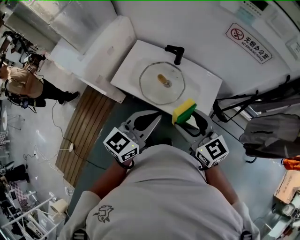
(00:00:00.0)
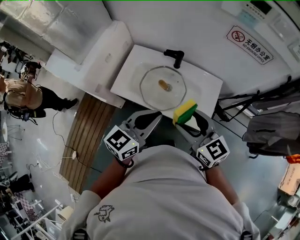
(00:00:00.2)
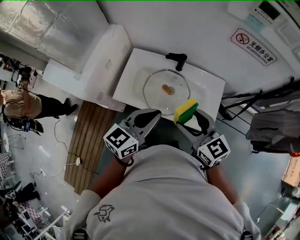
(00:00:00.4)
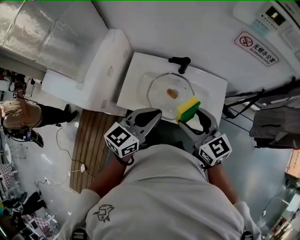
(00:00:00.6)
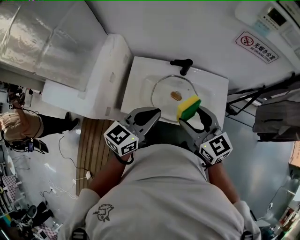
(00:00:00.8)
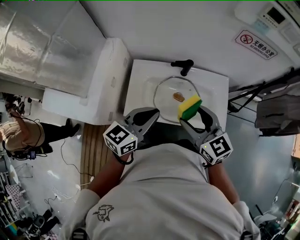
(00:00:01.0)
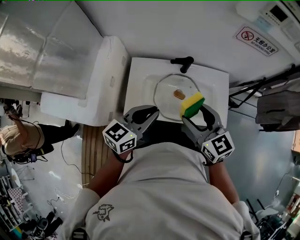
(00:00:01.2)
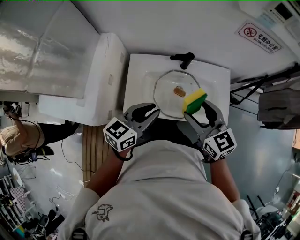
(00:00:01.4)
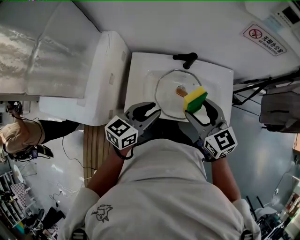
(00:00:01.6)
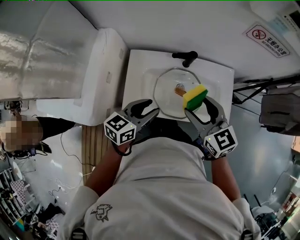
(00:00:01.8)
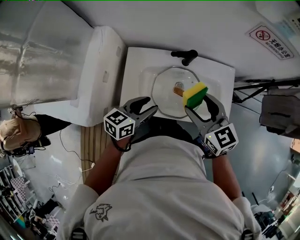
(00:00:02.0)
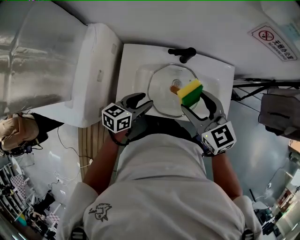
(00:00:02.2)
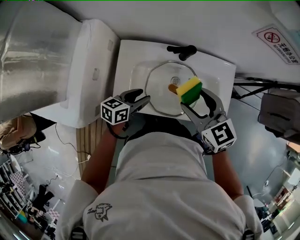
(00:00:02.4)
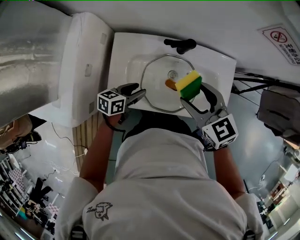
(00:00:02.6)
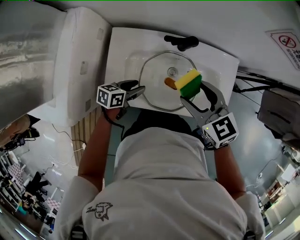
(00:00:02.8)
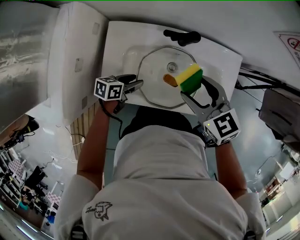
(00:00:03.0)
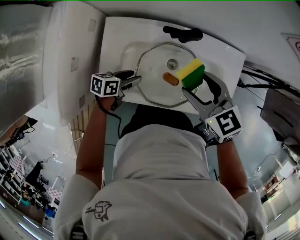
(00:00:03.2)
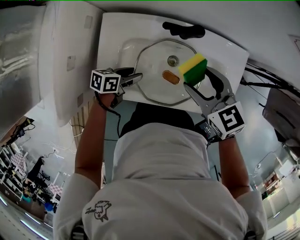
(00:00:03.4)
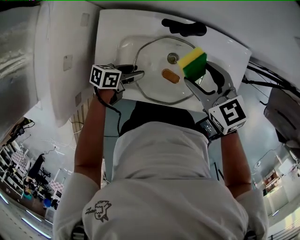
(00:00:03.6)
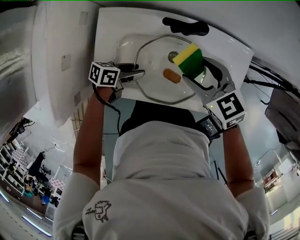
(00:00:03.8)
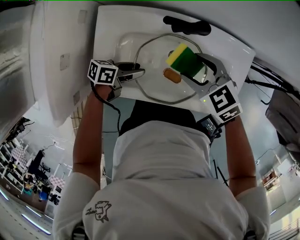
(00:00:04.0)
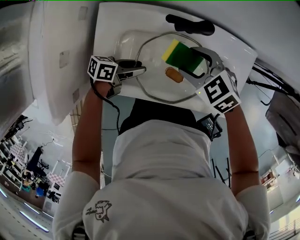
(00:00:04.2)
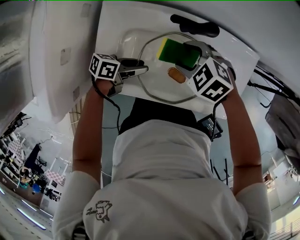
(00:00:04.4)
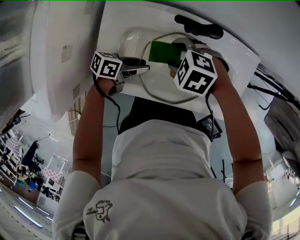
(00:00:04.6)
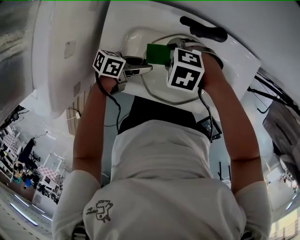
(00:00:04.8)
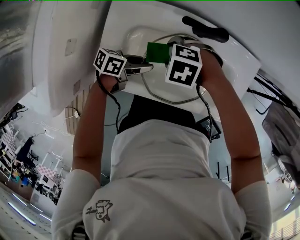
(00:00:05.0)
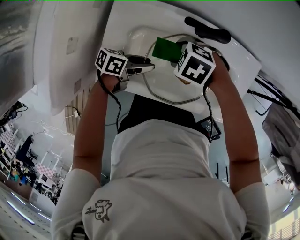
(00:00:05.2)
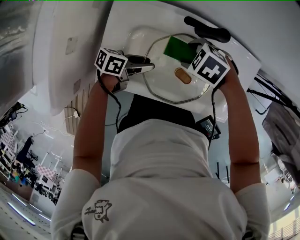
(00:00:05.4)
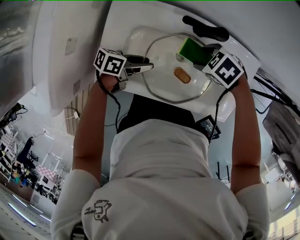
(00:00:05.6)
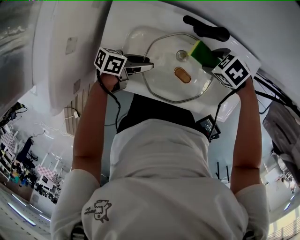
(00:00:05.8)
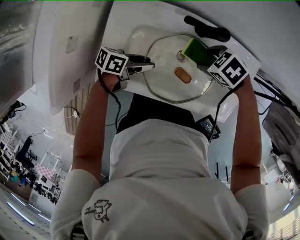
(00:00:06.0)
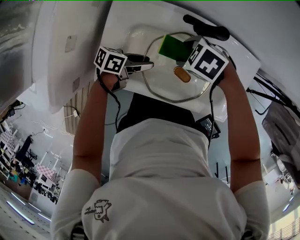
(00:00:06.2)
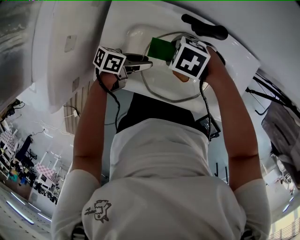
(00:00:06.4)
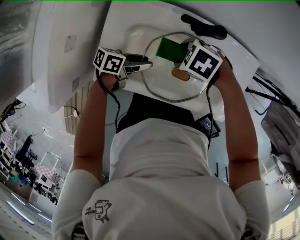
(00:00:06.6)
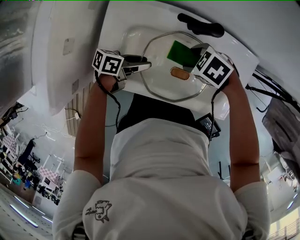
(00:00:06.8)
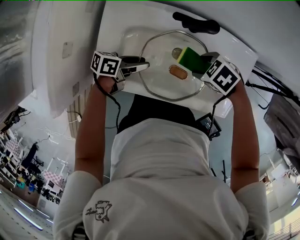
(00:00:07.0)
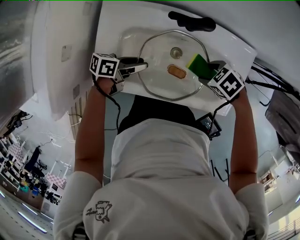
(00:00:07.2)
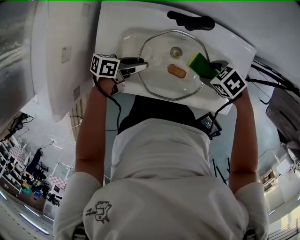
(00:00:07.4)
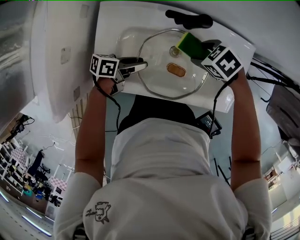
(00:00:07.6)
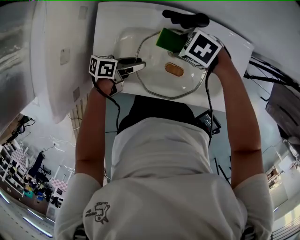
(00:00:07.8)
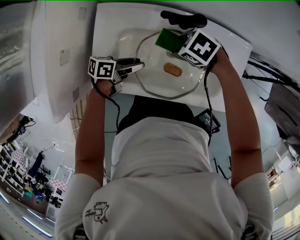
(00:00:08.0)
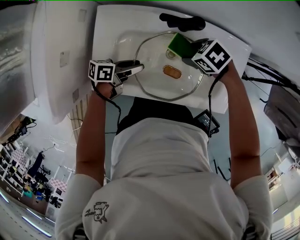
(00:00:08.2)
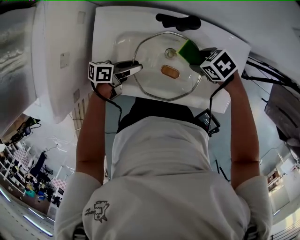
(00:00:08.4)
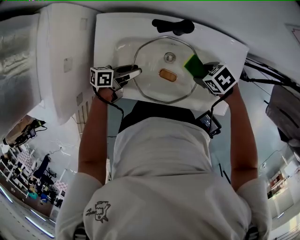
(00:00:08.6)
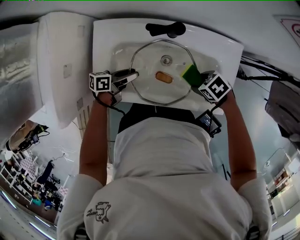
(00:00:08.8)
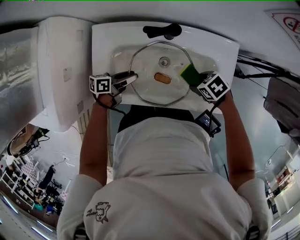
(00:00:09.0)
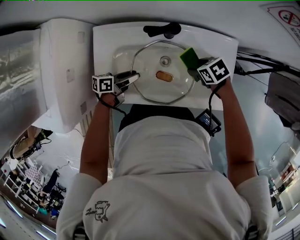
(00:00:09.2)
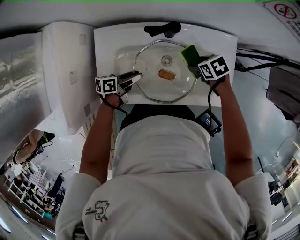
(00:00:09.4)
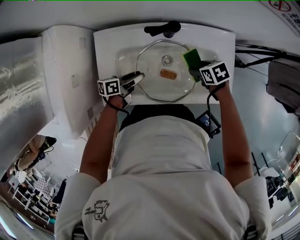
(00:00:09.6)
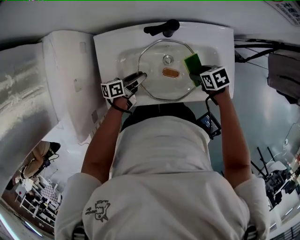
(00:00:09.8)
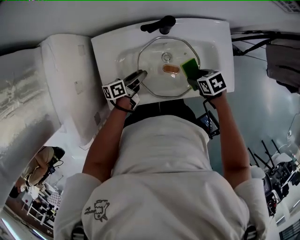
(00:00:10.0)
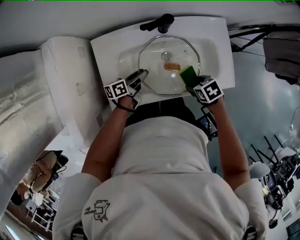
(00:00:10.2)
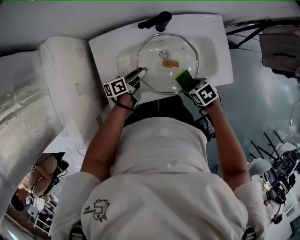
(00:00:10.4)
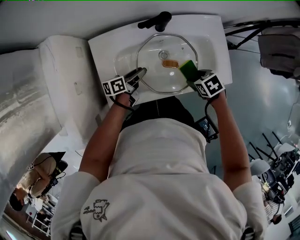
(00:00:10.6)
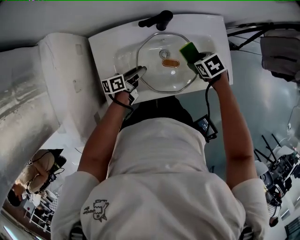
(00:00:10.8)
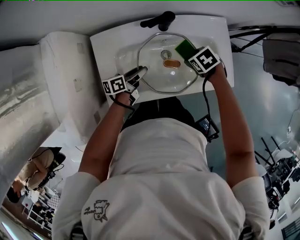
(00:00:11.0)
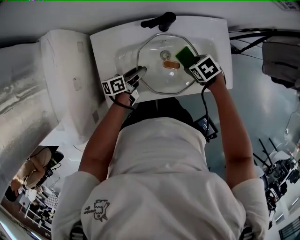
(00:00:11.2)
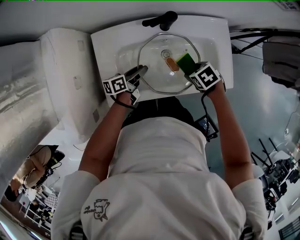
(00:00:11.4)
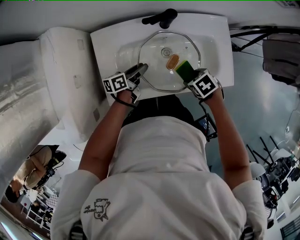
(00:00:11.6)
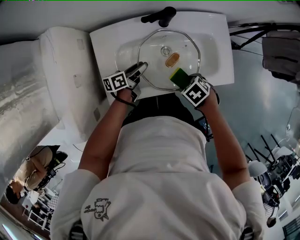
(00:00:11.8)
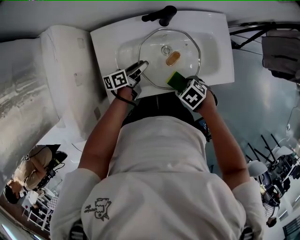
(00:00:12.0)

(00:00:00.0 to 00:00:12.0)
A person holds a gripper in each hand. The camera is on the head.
00:00:00.0 - 00:00:01.6: The right gripper heads to the left and forward, covering about 20 cm, and turns by about 20 degrees; the left gripper travels to the left, forward and downward by roughly 30 cm, turns by roughly 30 degrees, and opens up.
00:00:01.6 - 00:00:03.0: The right gripper moves downward and forward, about 15 cm. Meanwhile the left gripper goes roughly 30 cm downward, and rotates roughly 40 degrees.
00:00:03.0 - 00:00:04.4: The right gripper travels downward by approximately 15 cm, and rotates approximately 40 degrees.
00:00:04.4 - 00:00:06.0: The right gripper changes place by approximately 5 cm, and swivels roughly 20 degrees.
00:00:07.6 - 00:00:09.0: The right gripper shifts by about 15 cm.
00:00:09.0 - 00:00:10.4: The right gripper changes place by approximately 15 cm, and rotates roughly 30 degrees.

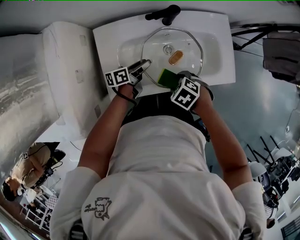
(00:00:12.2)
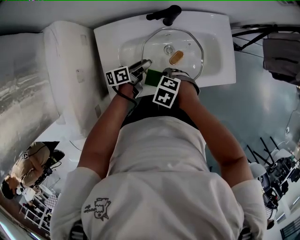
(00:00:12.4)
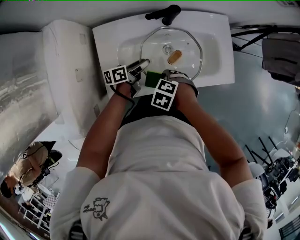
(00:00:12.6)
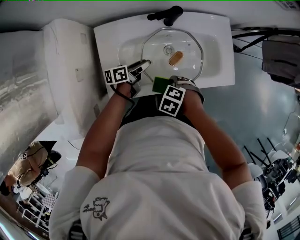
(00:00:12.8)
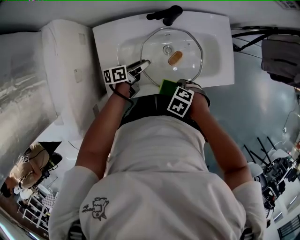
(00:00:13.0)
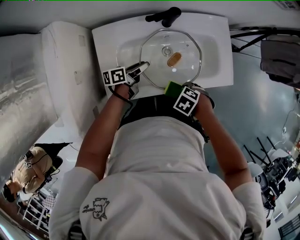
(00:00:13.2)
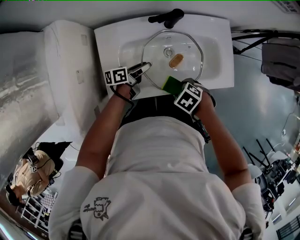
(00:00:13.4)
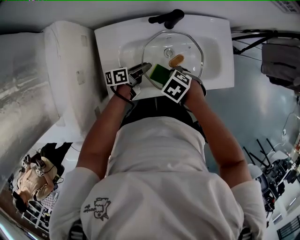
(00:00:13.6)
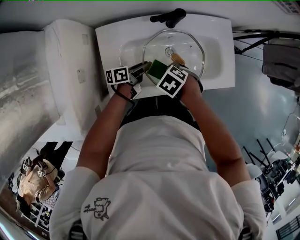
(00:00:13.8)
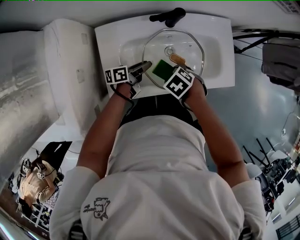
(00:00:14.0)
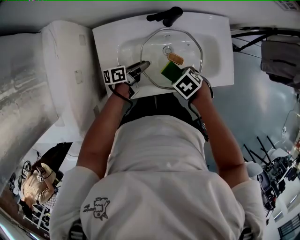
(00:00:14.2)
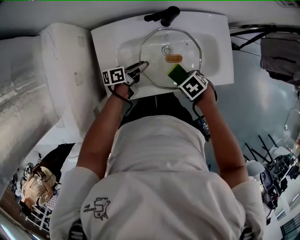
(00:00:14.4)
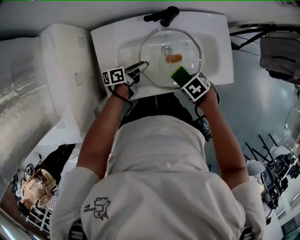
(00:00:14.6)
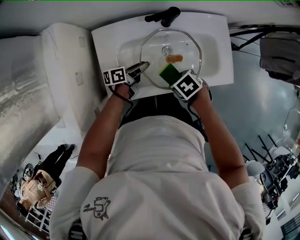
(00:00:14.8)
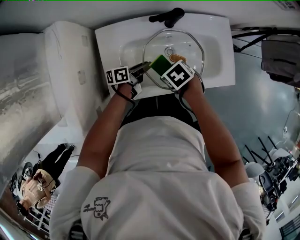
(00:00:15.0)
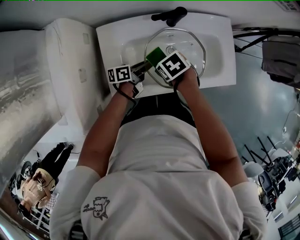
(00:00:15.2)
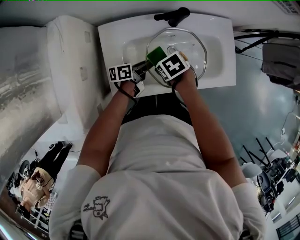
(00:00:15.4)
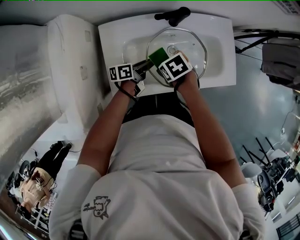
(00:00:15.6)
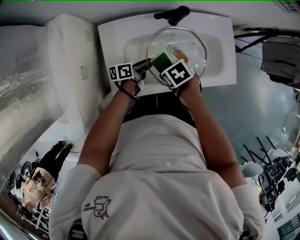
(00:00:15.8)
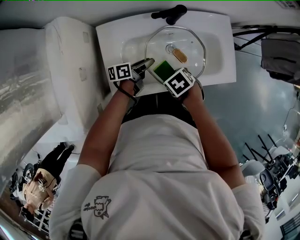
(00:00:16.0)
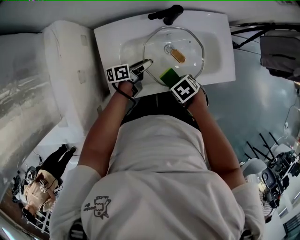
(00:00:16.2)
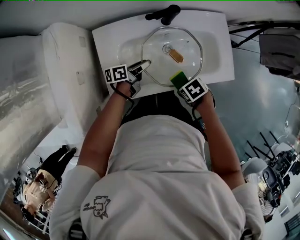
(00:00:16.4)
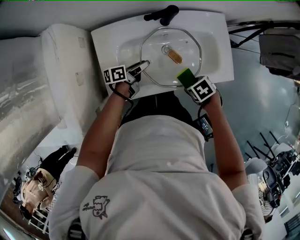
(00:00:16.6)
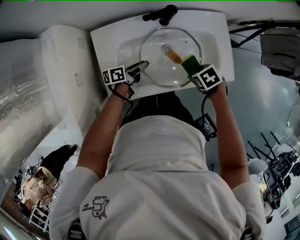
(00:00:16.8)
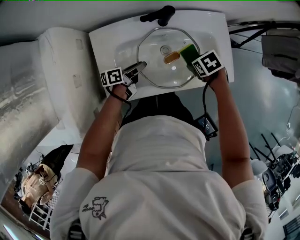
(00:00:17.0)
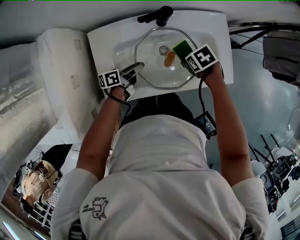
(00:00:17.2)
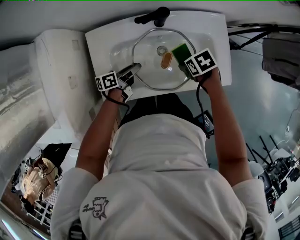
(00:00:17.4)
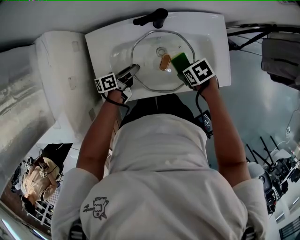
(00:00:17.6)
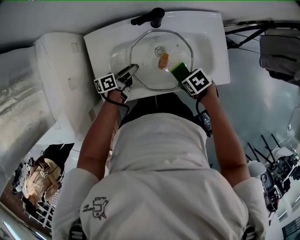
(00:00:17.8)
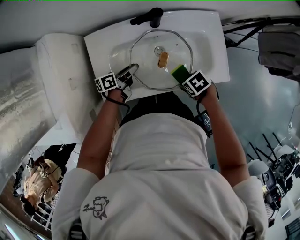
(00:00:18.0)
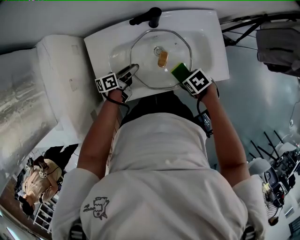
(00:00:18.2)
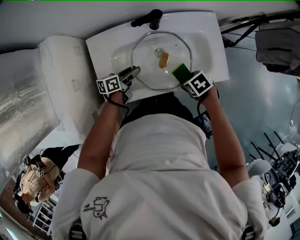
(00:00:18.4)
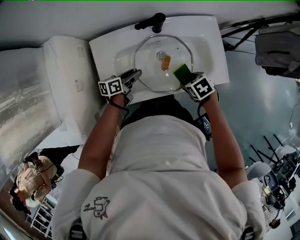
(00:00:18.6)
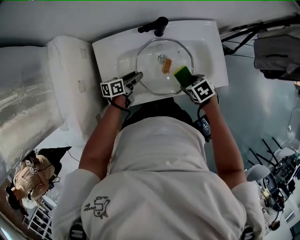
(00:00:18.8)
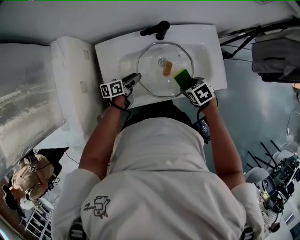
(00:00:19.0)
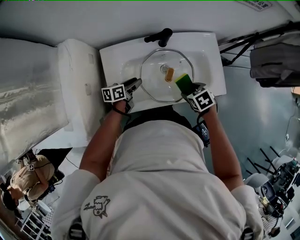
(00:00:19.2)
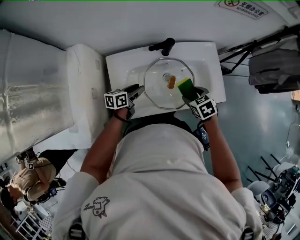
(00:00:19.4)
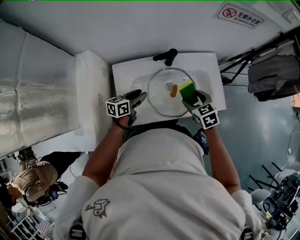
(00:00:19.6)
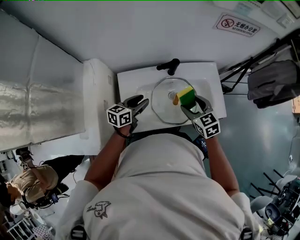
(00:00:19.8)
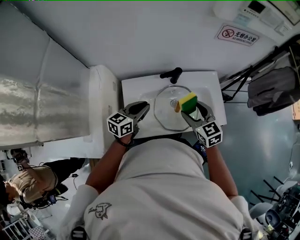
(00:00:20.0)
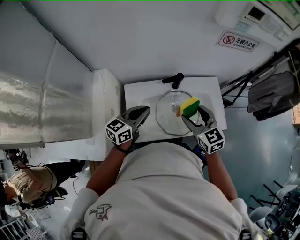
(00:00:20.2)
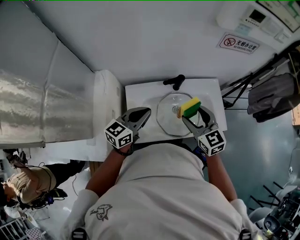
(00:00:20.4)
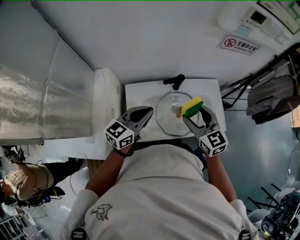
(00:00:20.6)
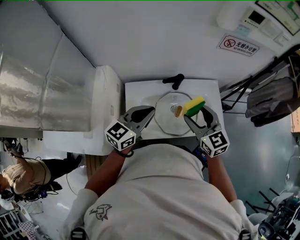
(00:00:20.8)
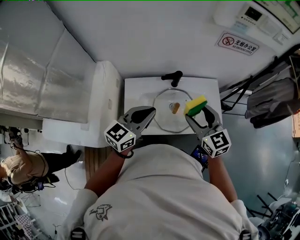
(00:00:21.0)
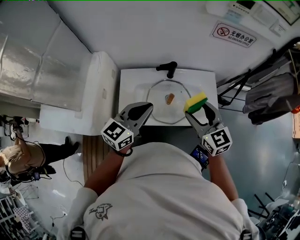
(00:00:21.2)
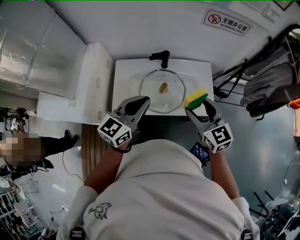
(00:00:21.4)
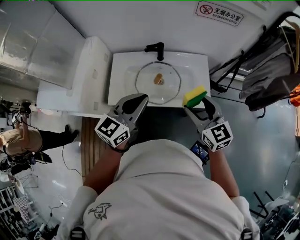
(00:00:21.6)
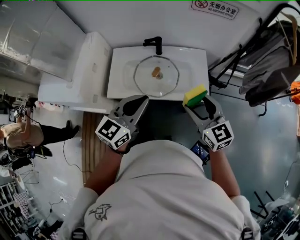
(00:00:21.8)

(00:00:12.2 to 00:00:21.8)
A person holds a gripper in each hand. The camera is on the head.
00:00:12.2 - 00:00:13.8: The right gripper changes place by roughly 5 cm.
00:00:13.8 - 00:00:15.4: The right gripper rotates some 30 degrees.
00:00:15.4 - 00:00:17.0: The right gripper changes place by approximately 20 cm.
00:00:17.0 - 00:00:18.6: The right gripper ends up some 10 cm from where it was.
00:00:18.6 - 00:00:20.2: The grippers both shift upward by roughly 30 cm. The right gripper points its fingers some 50 degrees further upward. The left gripper turns by roughly 40 degrees, and closes.
00:00:20.2 - 00:00:21.8: The right gripper travels to the right and backward by approximately 30 cm. The left gripper heads to the right, backward and upward, covering about 35 cm, and changes its angle by some 20 degrees.

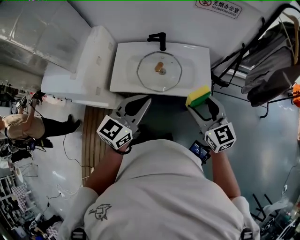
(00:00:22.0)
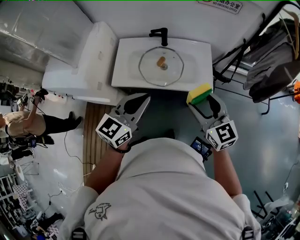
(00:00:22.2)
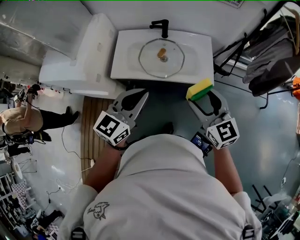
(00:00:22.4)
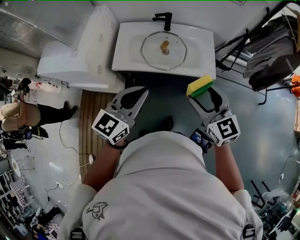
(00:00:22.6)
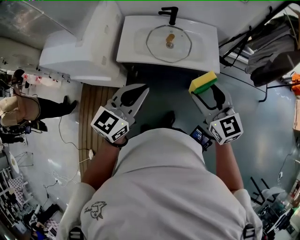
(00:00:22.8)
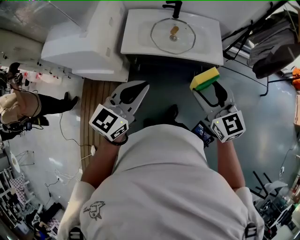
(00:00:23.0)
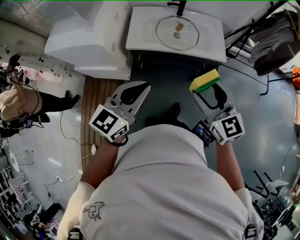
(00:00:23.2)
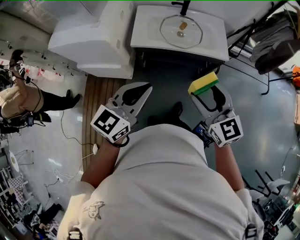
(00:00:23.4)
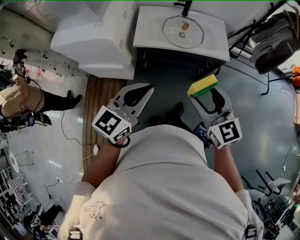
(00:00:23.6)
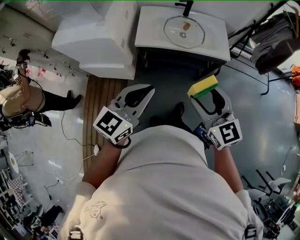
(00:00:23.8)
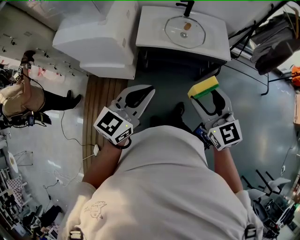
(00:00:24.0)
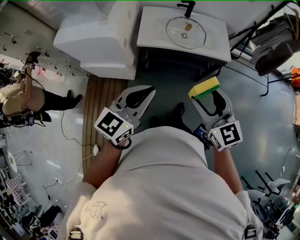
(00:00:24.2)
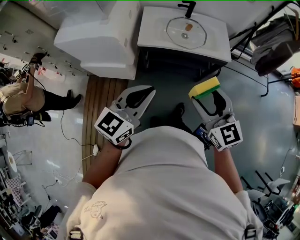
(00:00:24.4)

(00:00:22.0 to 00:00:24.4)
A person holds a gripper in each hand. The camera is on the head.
00:00:22.0 - 00:00:23.2: The grippers both shift backward and to the left by approximately 25 cm.
00:00:23.2 - 00:00:24.4: Both grippers travel together backward and to the left, about 10 cm.
